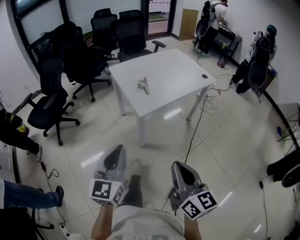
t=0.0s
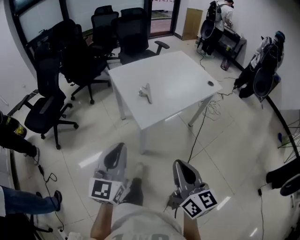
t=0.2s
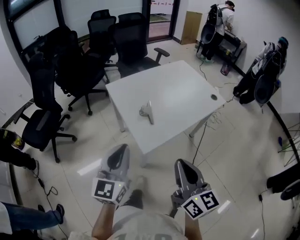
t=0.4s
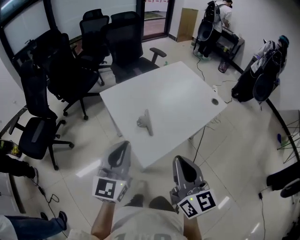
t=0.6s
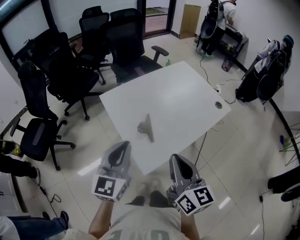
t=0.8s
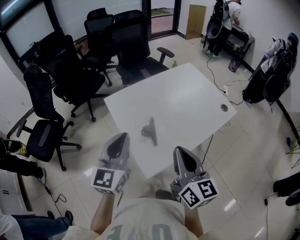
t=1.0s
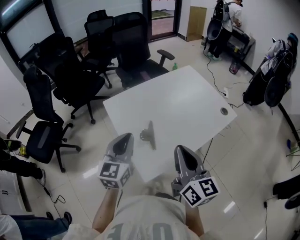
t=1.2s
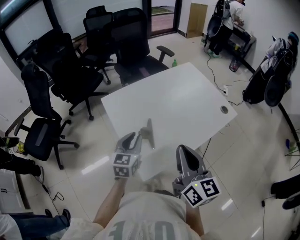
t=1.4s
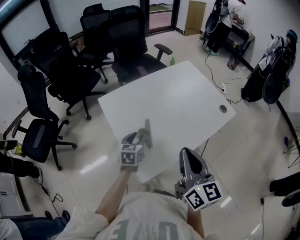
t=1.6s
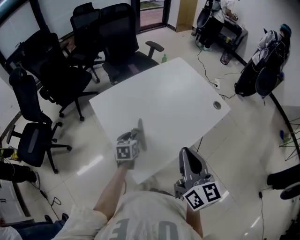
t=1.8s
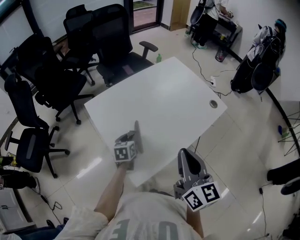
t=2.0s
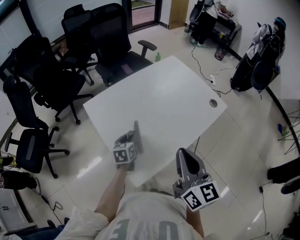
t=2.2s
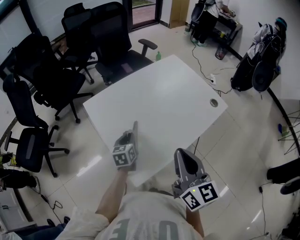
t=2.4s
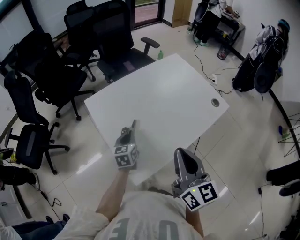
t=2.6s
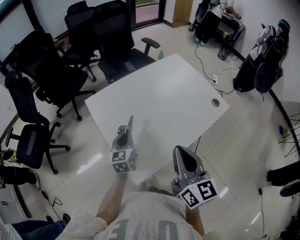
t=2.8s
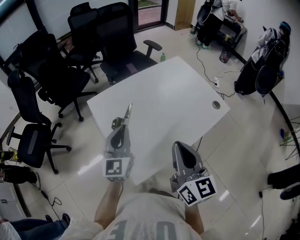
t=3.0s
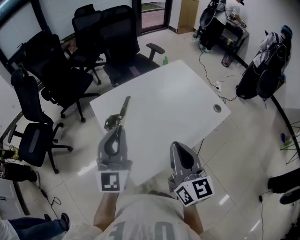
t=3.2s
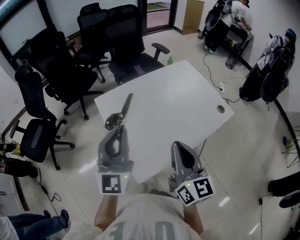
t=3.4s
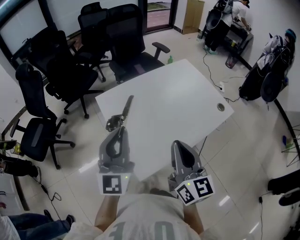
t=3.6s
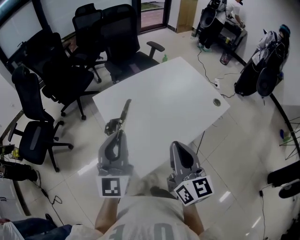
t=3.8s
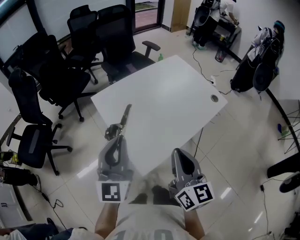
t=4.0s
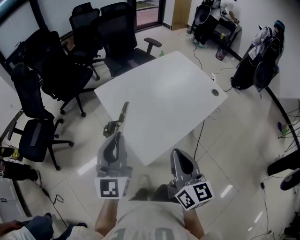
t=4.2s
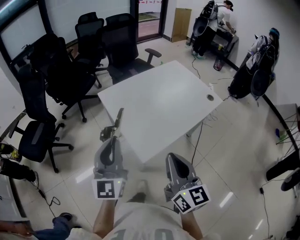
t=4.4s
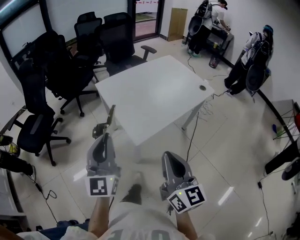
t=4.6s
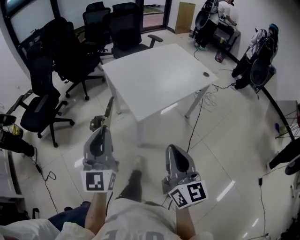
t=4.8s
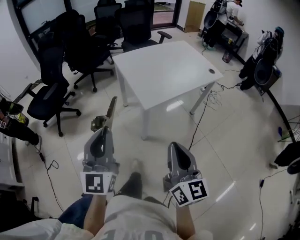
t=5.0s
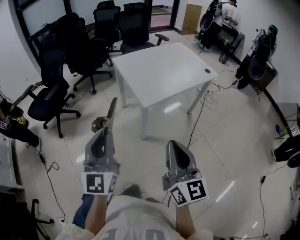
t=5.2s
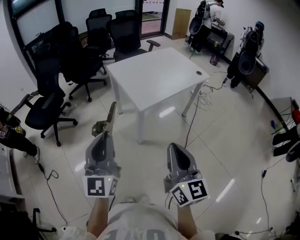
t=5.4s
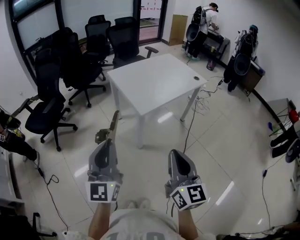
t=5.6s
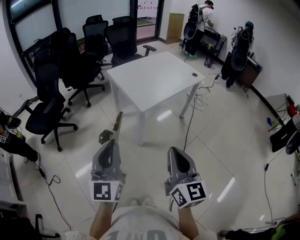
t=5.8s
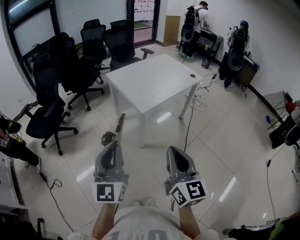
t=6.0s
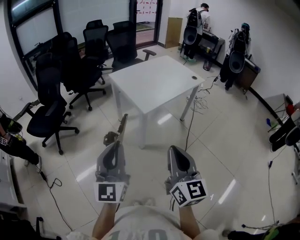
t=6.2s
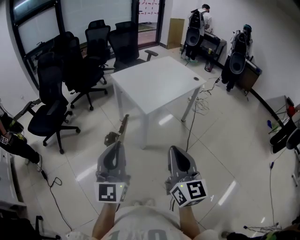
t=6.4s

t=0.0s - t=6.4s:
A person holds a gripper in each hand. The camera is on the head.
t=0.0s - t=1.6s: Both grippers are carried forward, roughly 40 cm. The left gripper heads downward, covering about 20 cm, points its fingers some 30 degrees further downward, and opens.
t=1.6s - t=3.2s: The left gripper travels upward by about 25 cm, tilts its fingers roughly 40 degrees upward, and closes.
t=3.2s - t=4.8s: The two grippers go some 35 cm backward.
t=4.8s - t=6.4s: The left gripper shifts some 20 cm backward, while the right gripper heads backward and to the left, covering some 15 cm.

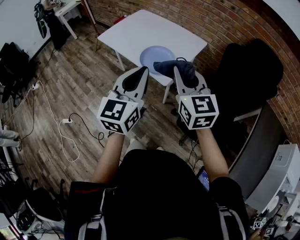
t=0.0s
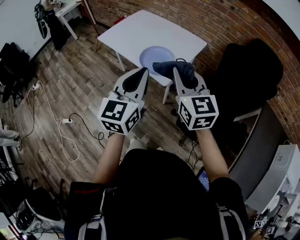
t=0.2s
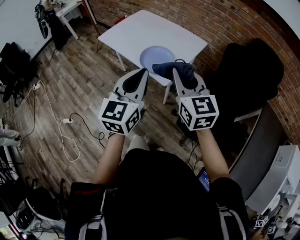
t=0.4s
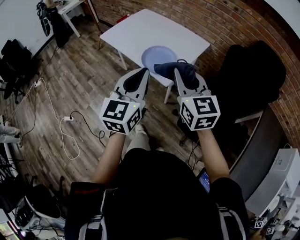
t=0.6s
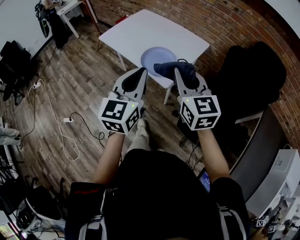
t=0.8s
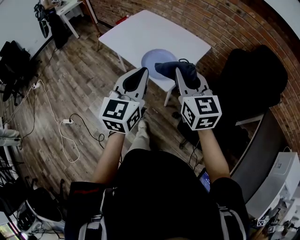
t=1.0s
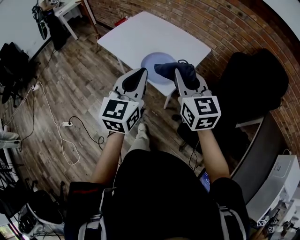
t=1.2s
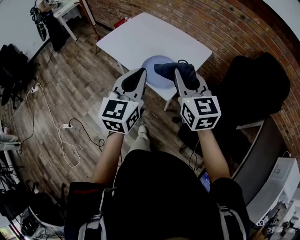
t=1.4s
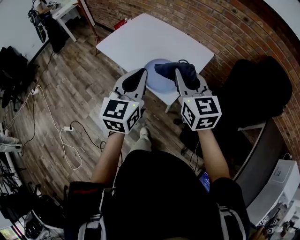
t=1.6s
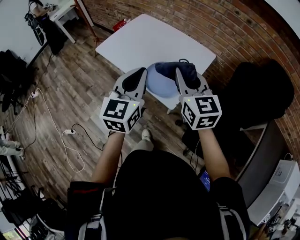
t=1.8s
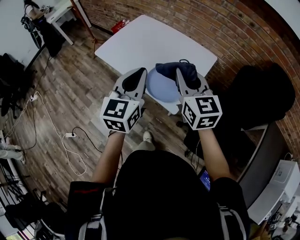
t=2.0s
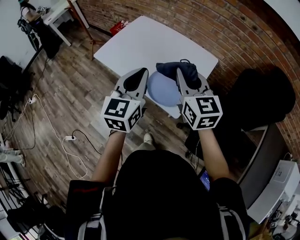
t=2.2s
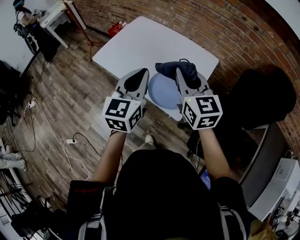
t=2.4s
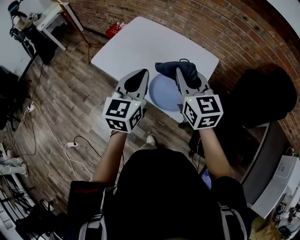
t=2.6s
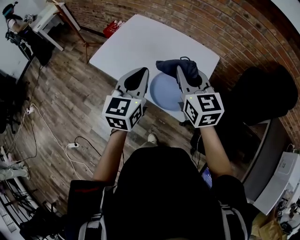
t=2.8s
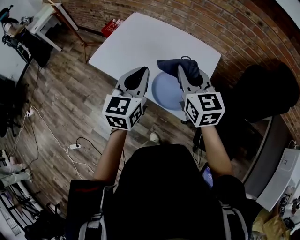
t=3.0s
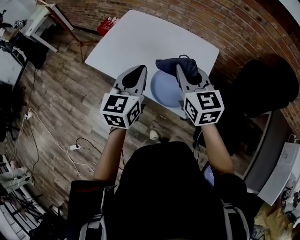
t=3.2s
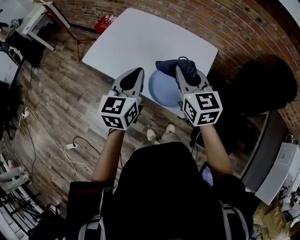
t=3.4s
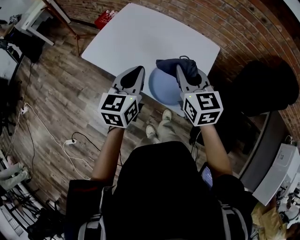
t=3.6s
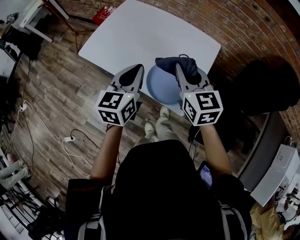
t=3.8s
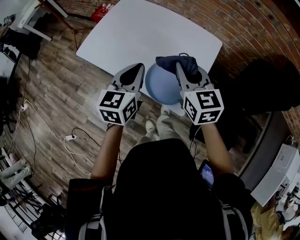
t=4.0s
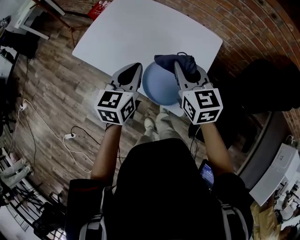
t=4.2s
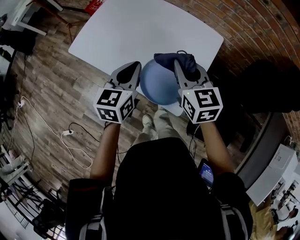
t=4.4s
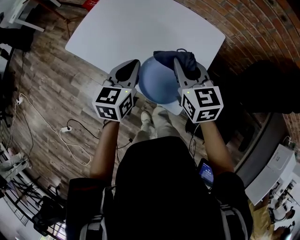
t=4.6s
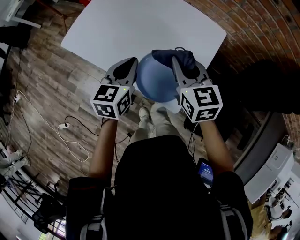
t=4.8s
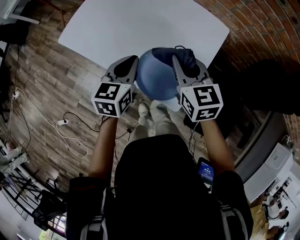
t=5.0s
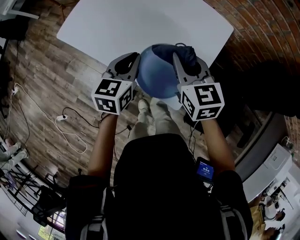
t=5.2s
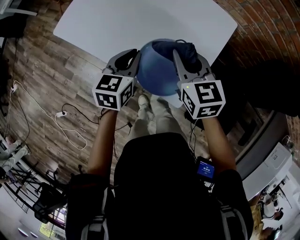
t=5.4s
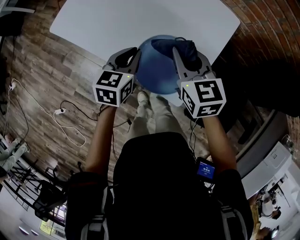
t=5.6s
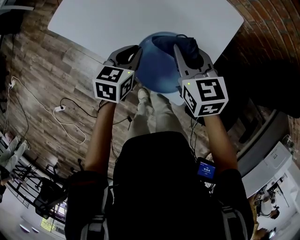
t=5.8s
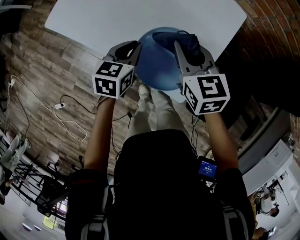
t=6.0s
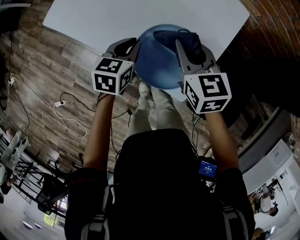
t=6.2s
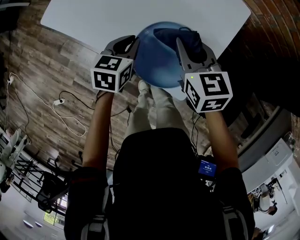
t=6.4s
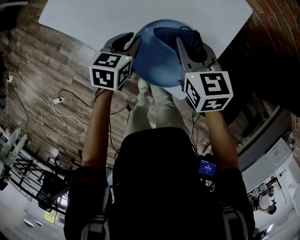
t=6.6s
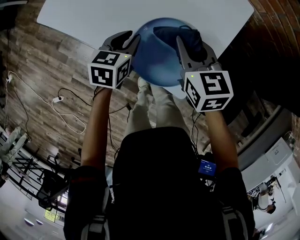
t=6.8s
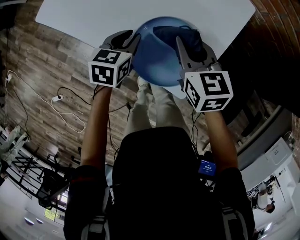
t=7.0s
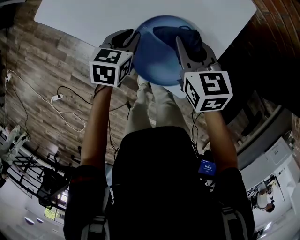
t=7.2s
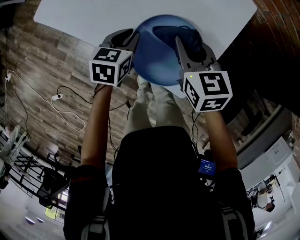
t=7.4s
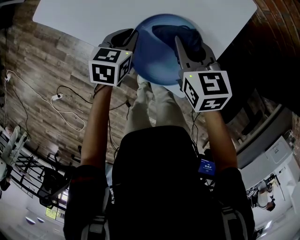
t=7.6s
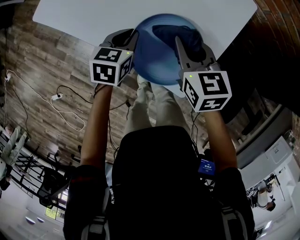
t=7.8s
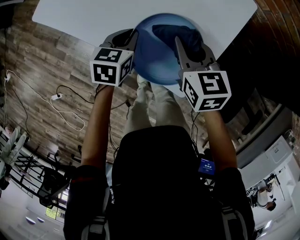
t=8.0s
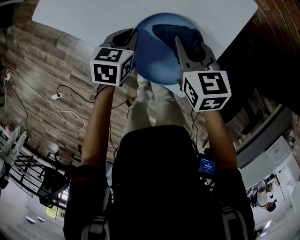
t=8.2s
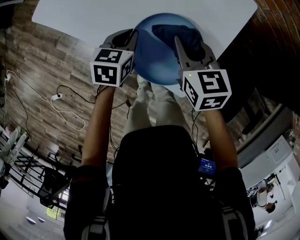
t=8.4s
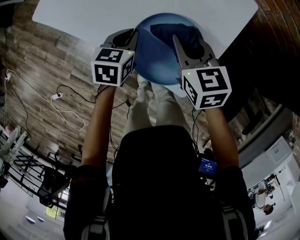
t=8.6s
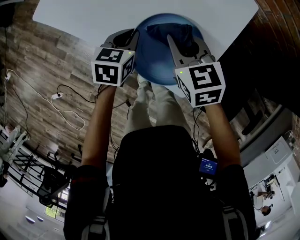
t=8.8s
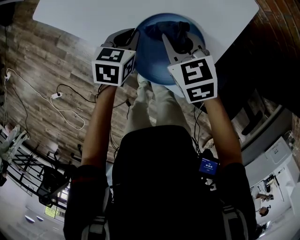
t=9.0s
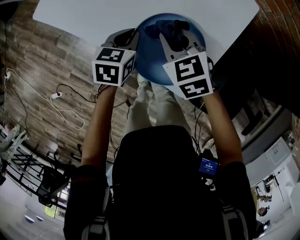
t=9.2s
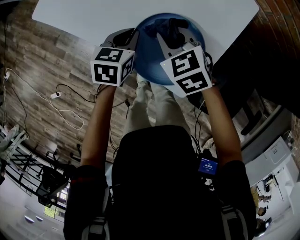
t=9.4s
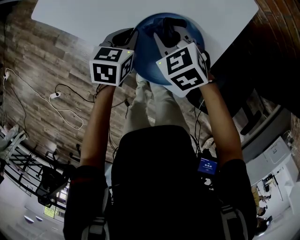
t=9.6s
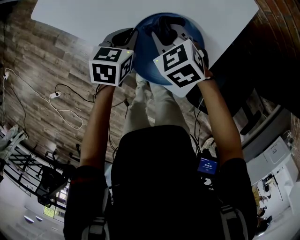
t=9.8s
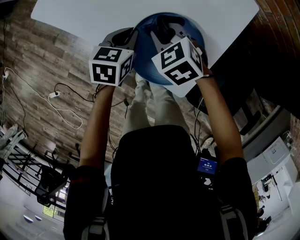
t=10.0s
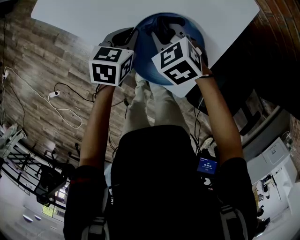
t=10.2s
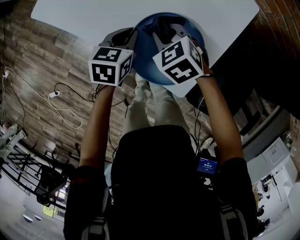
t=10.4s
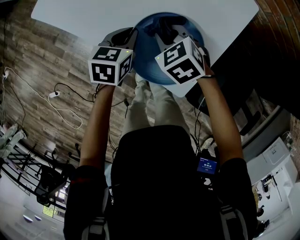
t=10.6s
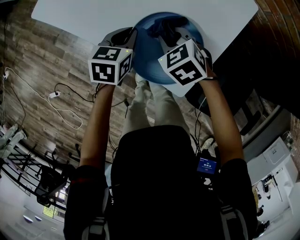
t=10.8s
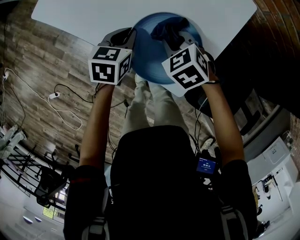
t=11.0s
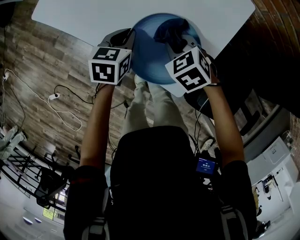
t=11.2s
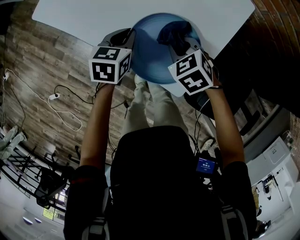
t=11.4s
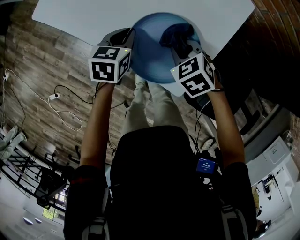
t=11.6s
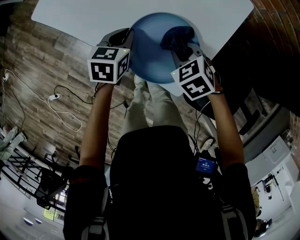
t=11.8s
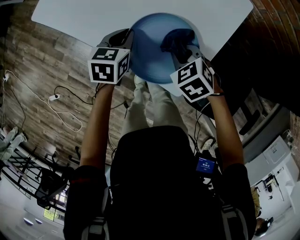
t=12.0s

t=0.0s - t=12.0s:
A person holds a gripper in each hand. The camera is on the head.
t=0.0s - t=1.6s: Both grippers travel together forward, roughly 15 cm.
t=1.6s - t=3.0s: Both grippers move forward and to the left, approximately 20 cm.
t=3.0s - t=4.4s: Both grippers travel together downward and forward, approximately 10 cm.
t=4.4s - t=6.0s: Both grippers travel together downward, about 15 cm.
t=6.0s - t=7.6s: The grippers both shift downward by about 5 cm.
t=7.6s - t=9.0s: There are only small adjustments of the grippers.
t=9.0s - t=10.4s: The right gripper ends up about 5 cm from where it was, and rotates approximately 20 degrees.
t=10.4s - t=12.0s: The right gripper is displaced to the right and backward by some 10 cm.

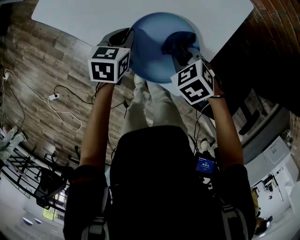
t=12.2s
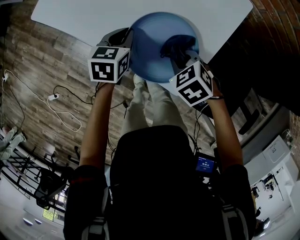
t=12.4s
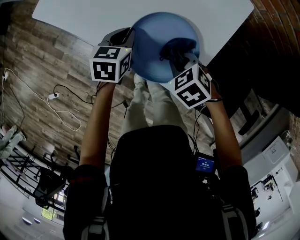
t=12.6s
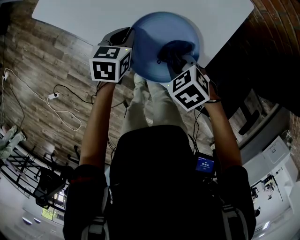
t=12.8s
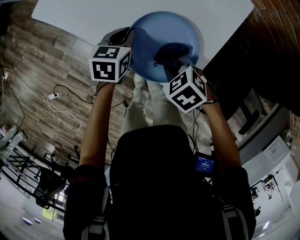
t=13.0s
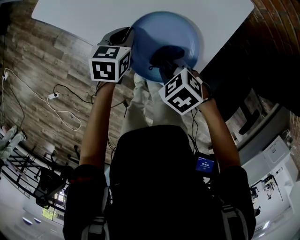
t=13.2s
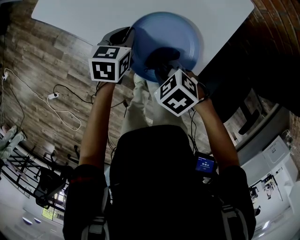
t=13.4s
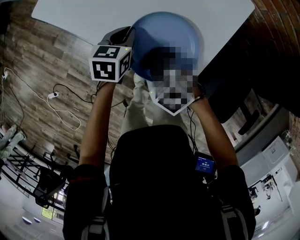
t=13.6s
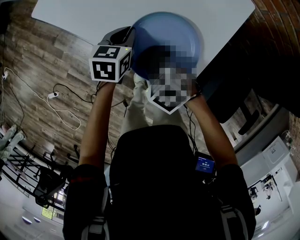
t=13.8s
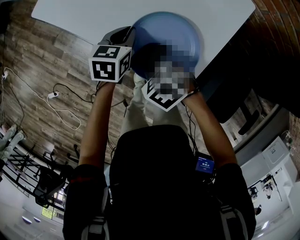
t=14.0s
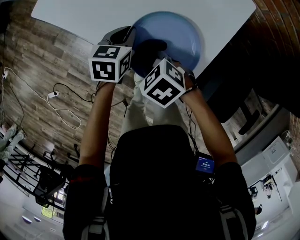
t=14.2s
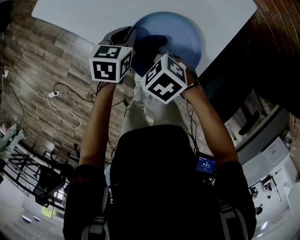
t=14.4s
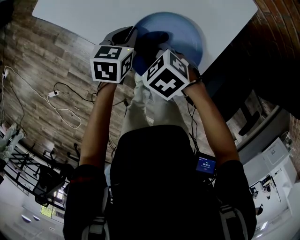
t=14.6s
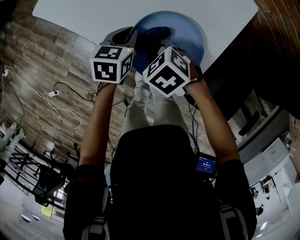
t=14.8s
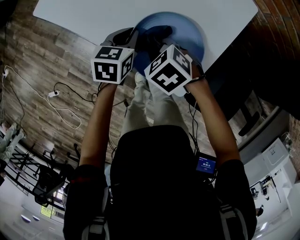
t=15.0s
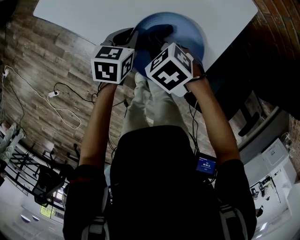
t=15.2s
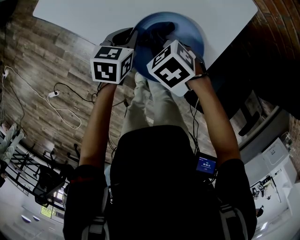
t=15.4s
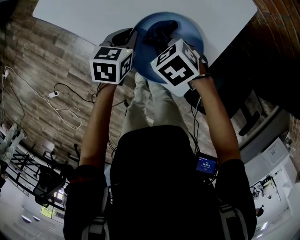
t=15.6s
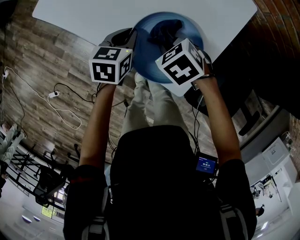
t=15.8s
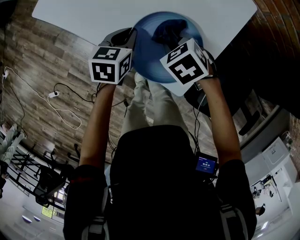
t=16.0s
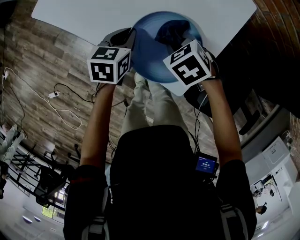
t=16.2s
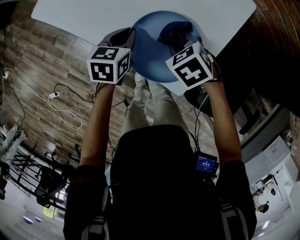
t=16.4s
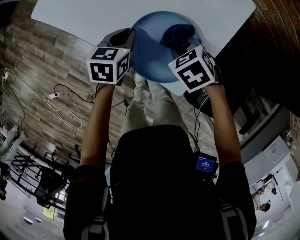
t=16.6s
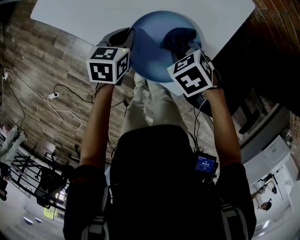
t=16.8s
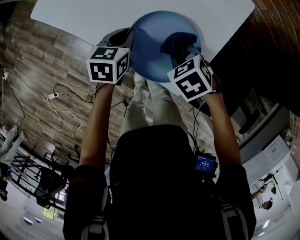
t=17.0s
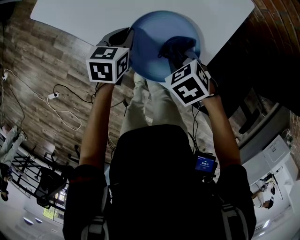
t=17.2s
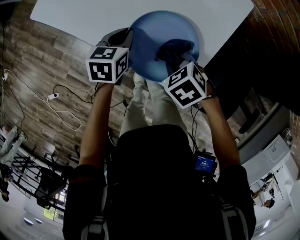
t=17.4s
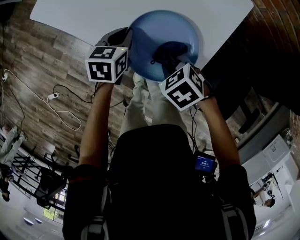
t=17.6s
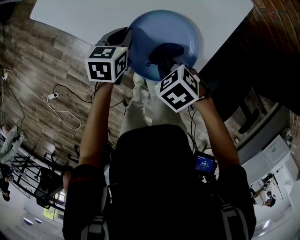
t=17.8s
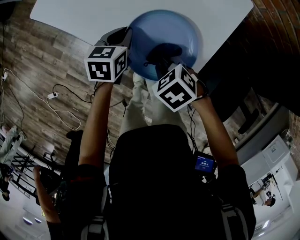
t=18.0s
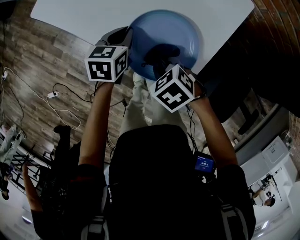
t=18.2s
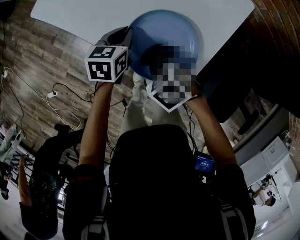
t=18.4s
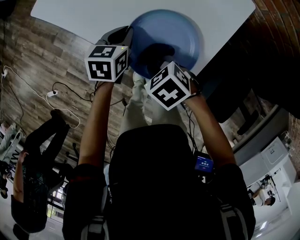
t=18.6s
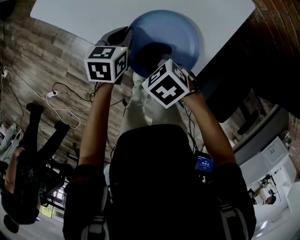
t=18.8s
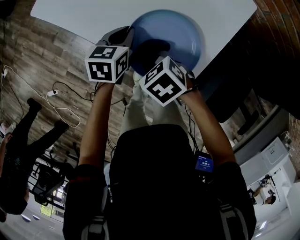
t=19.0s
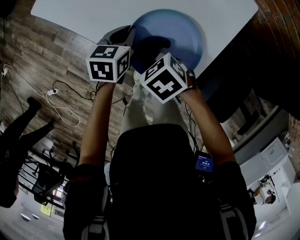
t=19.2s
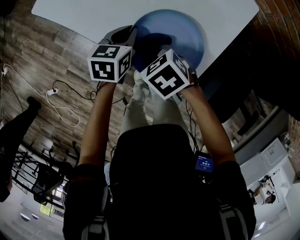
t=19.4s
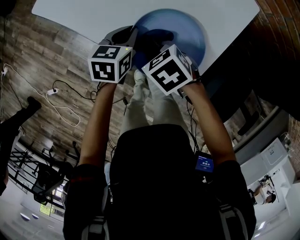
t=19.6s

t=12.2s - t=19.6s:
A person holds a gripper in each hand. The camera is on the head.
t=12.2s - t=13.6s: The right gripper moves to the left, some 10 cm.
t=13.6s - t=15.2s: The right gripper travels forward by approximately 10 cm.
t=15.2s - t=16.6s: The right gripper heads to the right, covering about 10 cm.
t=16.6s - t=18.2s: The right gripper shifts approximately 10 cm backward and to the left.
t=18.2s - t=19.6s: The right gripper shifts some 5 cm forward.
